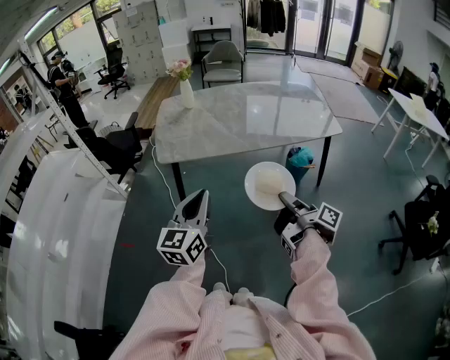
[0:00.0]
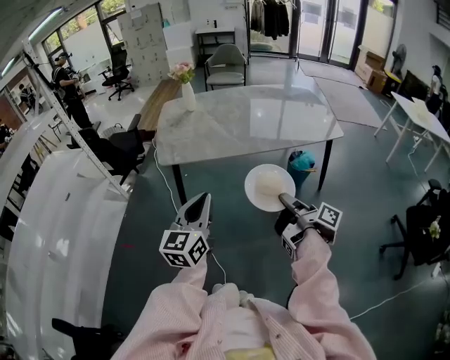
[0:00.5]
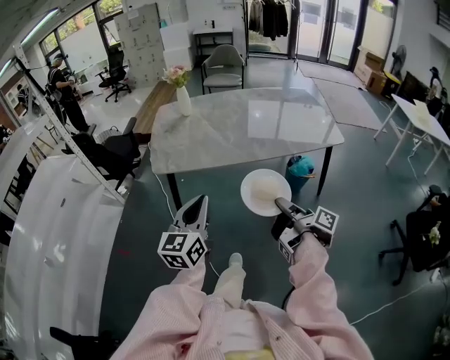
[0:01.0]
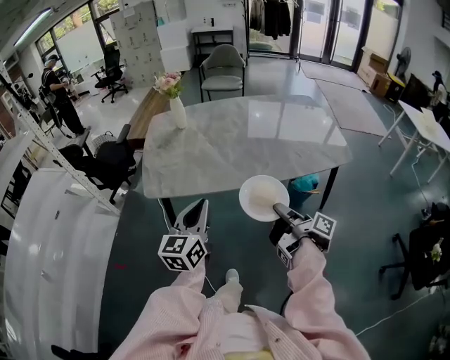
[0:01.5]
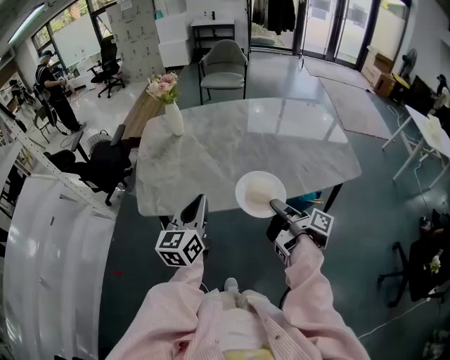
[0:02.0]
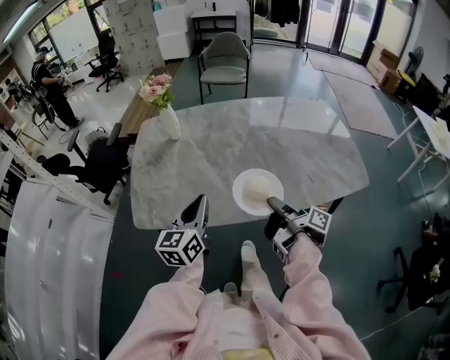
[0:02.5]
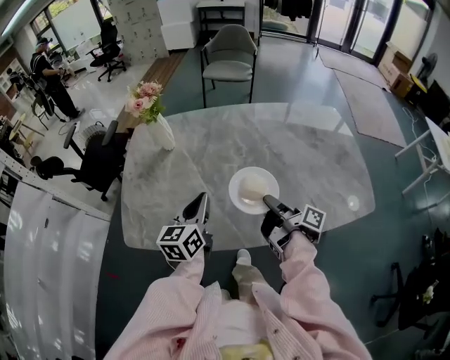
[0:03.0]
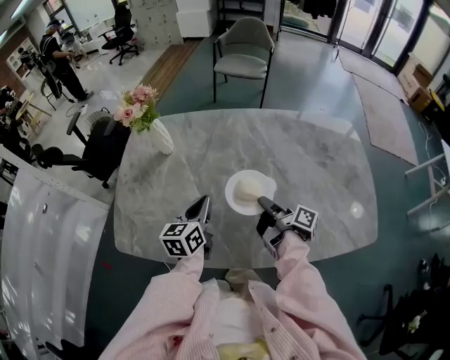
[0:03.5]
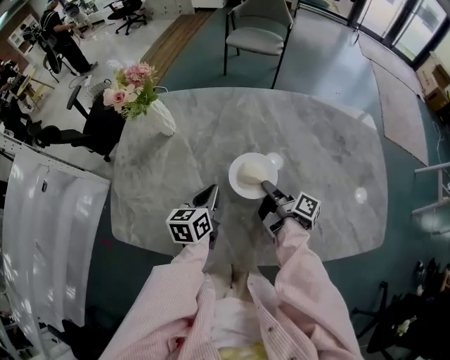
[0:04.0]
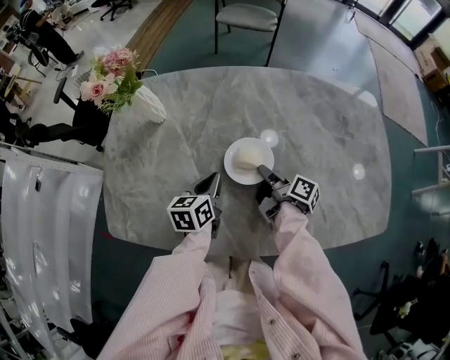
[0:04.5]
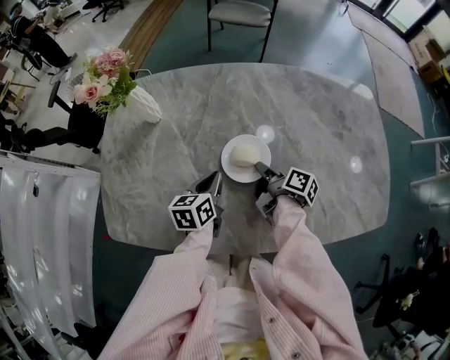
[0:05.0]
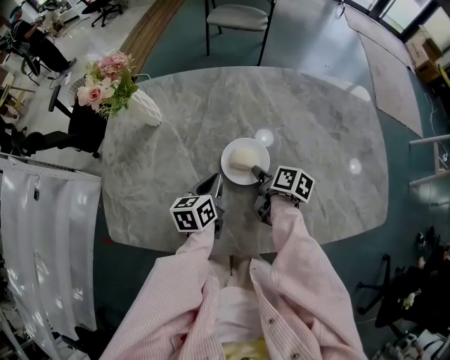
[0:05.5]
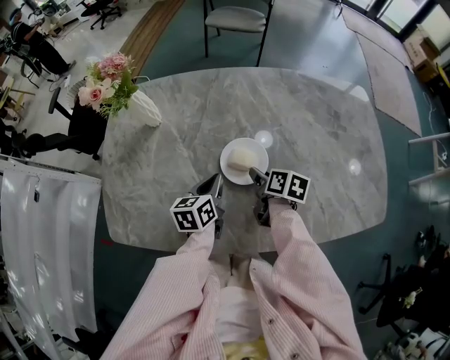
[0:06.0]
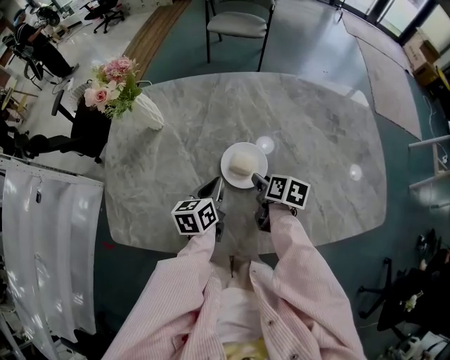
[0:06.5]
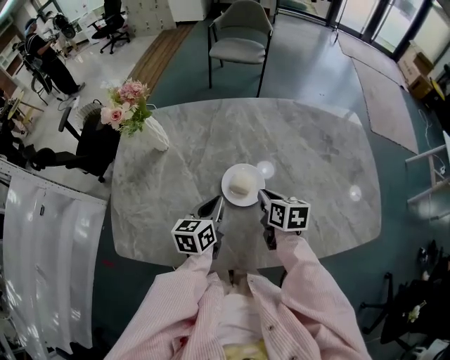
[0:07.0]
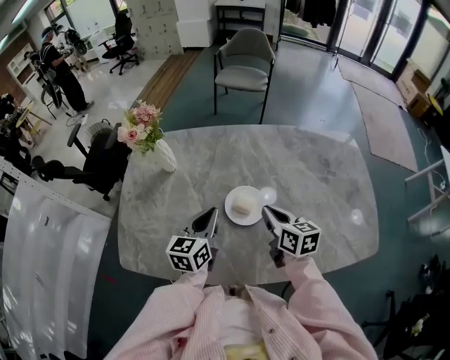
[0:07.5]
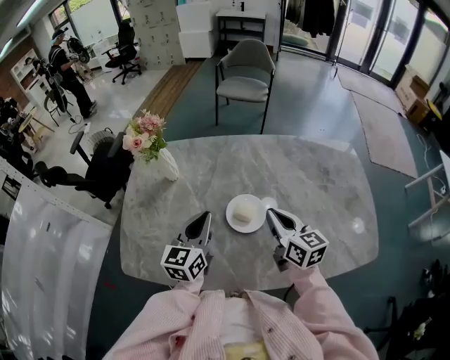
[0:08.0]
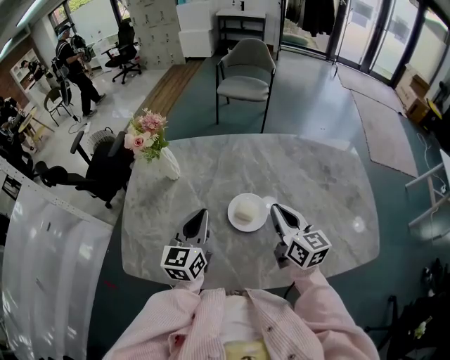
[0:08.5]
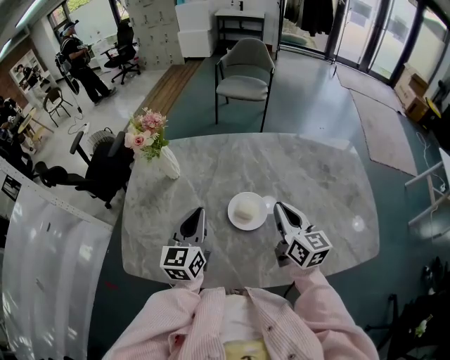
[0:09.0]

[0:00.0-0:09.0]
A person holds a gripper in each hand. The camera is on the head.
0:00.0 to 0:02.0: The left gripper moves roughly 35 cm.
0:02.0 to 0:04.5: The left gripper ends up about 40 cm from where it was, and rotates some 30 degrees.
0:04.5 to 0:07.0: The left gripper moves approximately 5 cm.
0:07.0 to 0:09.0: The left gripper moves upward, roughly 15 cm, and changes its angle by about 30 degrees.

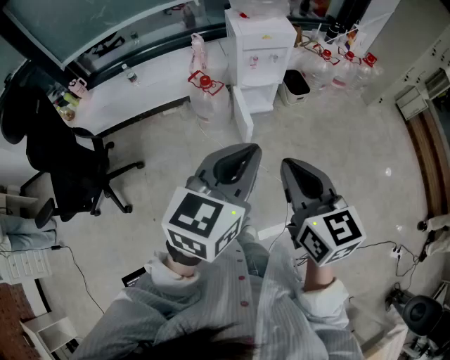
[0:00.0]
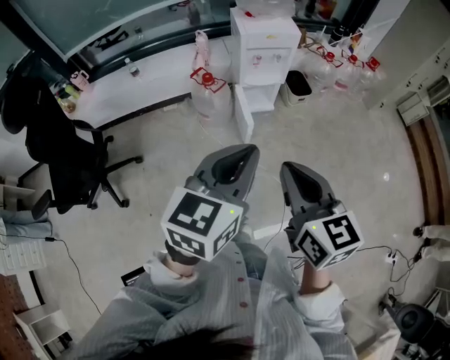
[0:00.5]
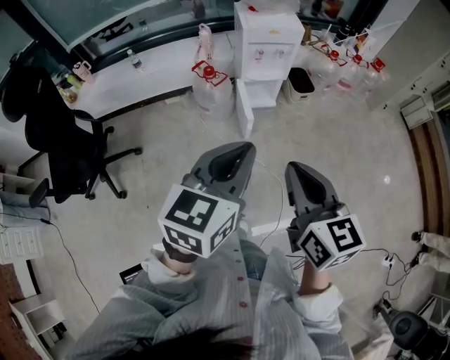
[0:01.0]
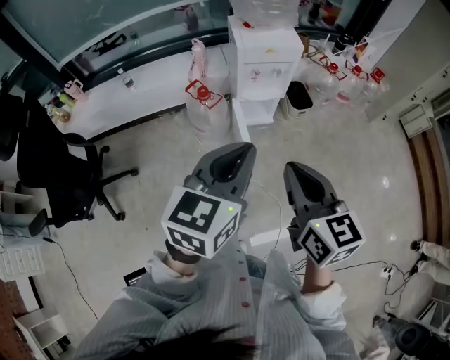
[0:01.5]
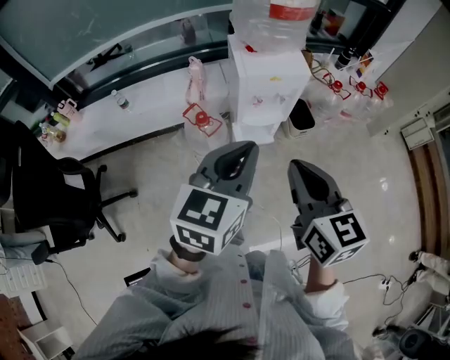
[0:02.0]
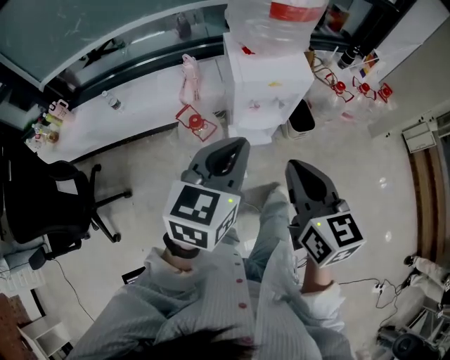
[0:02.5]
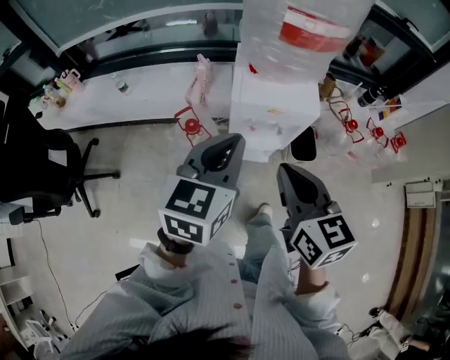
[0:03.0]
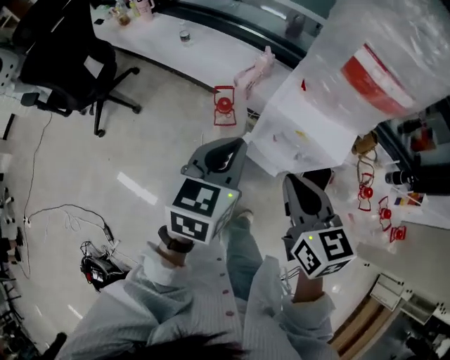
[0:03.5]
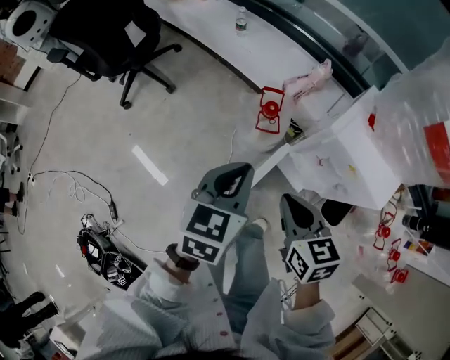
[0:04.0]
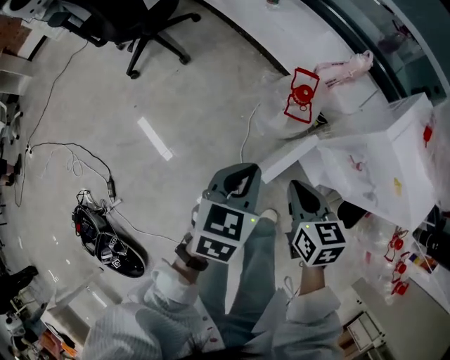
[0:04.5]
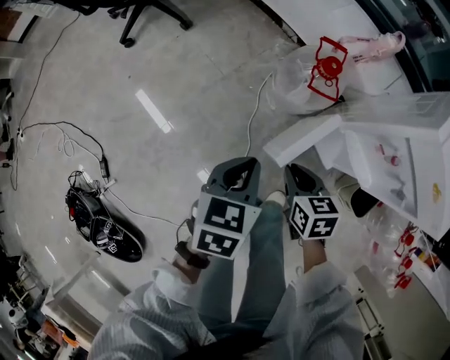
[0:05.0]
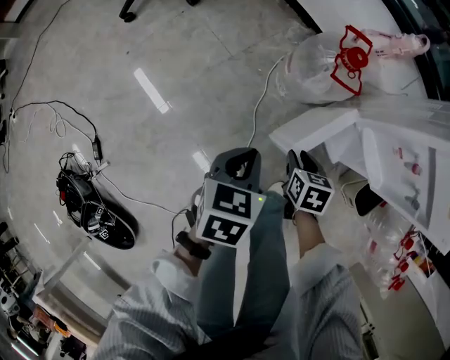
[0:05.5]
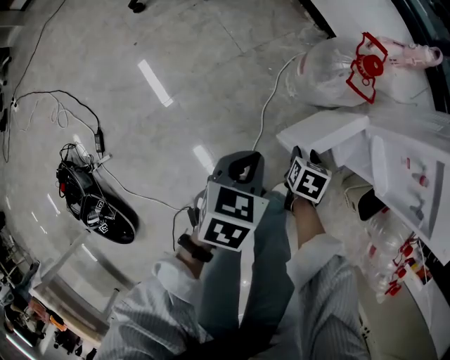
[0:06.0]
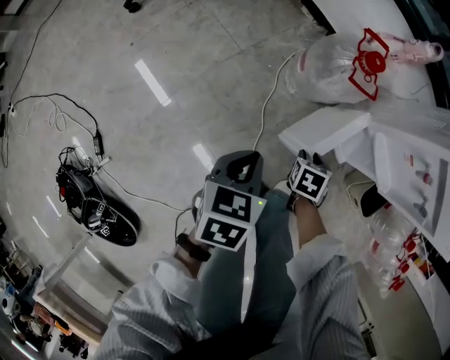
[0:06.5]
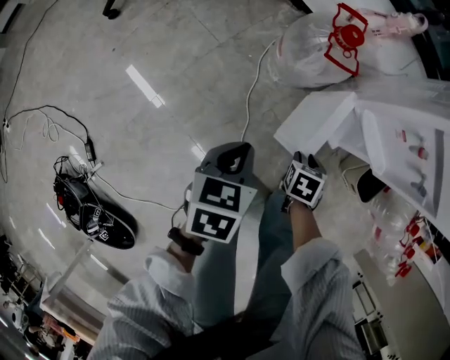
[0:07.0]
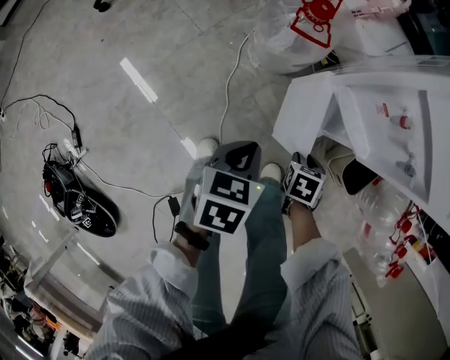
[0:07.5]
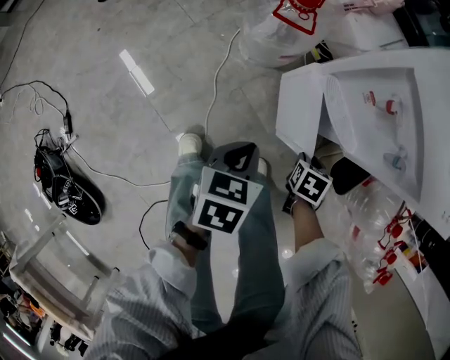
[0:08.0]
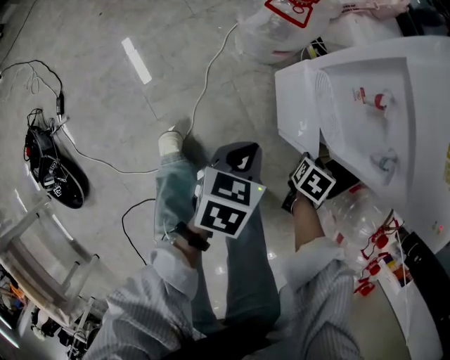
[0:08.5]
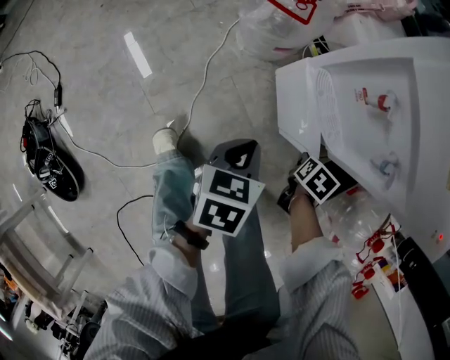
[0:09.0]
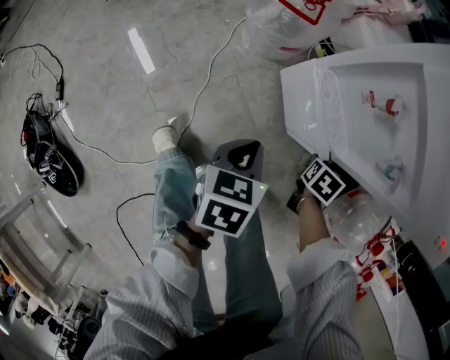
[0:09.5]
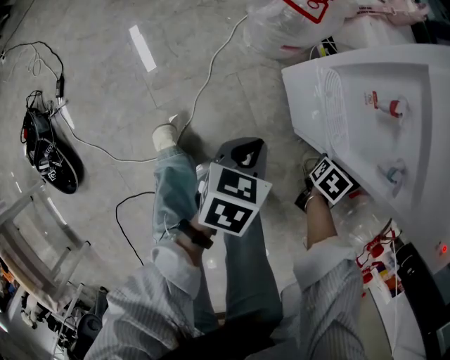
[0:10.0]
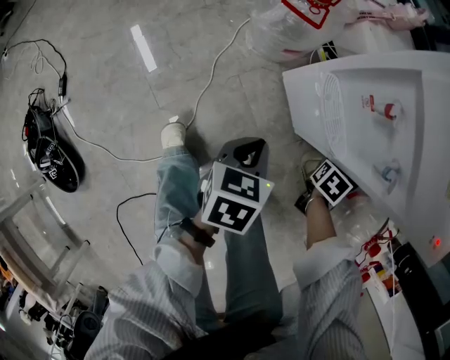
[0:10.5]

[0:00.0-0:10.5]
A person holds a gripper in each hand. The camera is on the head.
0:00.0 to 0:02.0: The two grippers go roughly 25 cm forward.
0:02.0 to 0:04.0: Both grippers travel together downward, approximately 20 cm. The right gripper swivels some 60 degrees. The left gripper swivels approximately 60 degrees.
0:04.0 to 0:06.5: Both grippers move downward, some 40 cm. The right gripper angles its fingers downward, by some 40 degrees, and opens; the left gripper rotates roughly 30 degrees.
0:06.5 to 0:08.5: Both grippers travel together to the right, roughly 30 cm.
0:08.5 to 0:10.5: The right gripper shifts by about 5 cm.

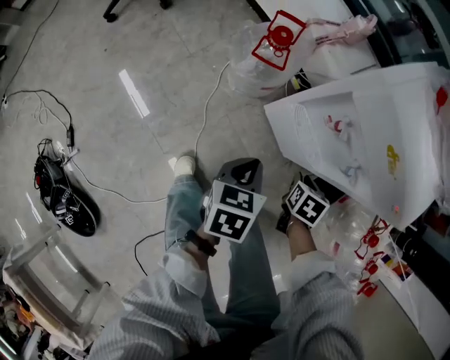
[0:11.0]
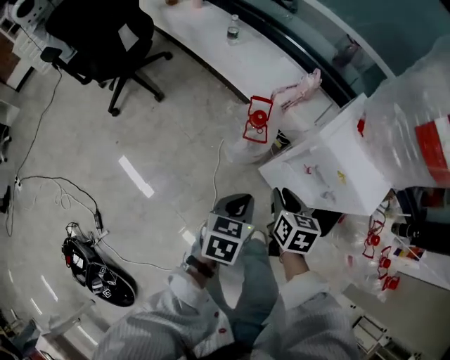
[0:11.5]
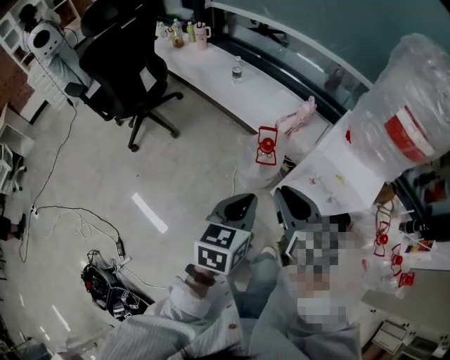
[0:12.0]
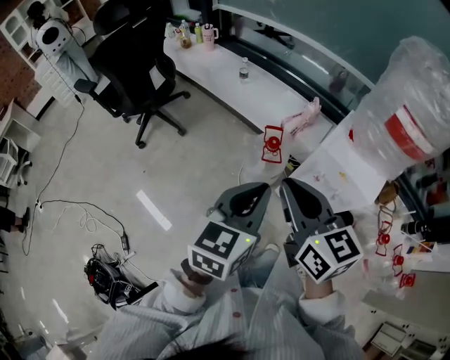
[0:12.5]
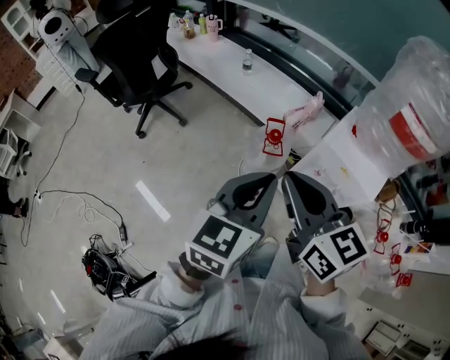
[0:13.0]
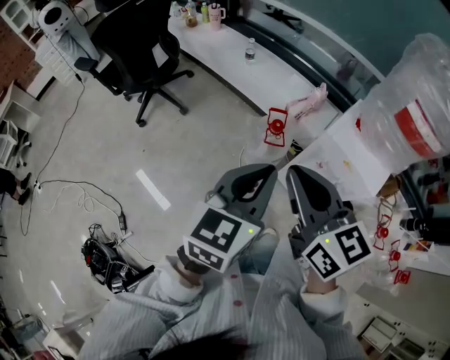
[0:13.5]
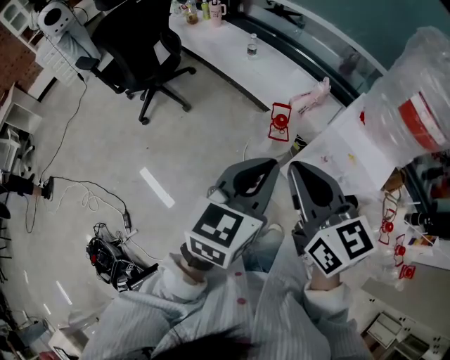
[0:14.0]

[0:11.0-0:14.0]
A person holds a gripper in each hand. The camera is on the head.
0:11.0 to 0:12.5: The right gripper is displaced upward and to the left by roughly 60 cm, and points its fingers roughly 60 degrees further upward. The left gripper is displaced upward by some 40 cm, and angles its fingers upward, by some 30 degrees.
0:12.5 to 0:14.0: The grippers make only small movements.

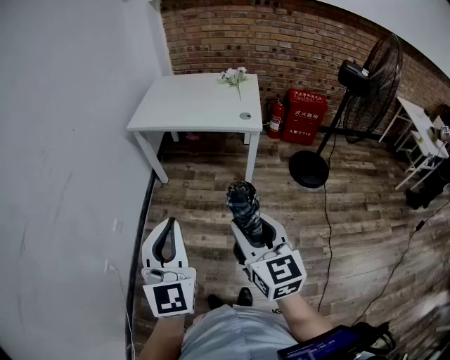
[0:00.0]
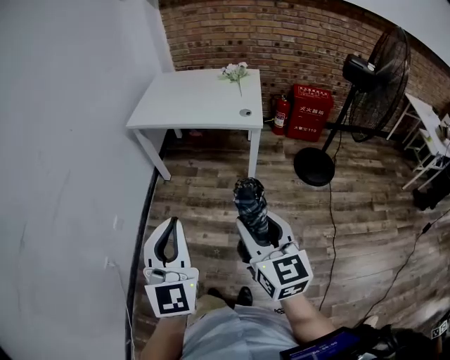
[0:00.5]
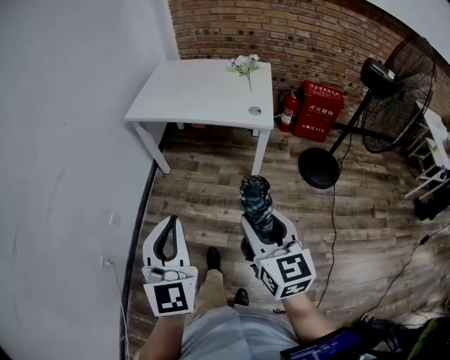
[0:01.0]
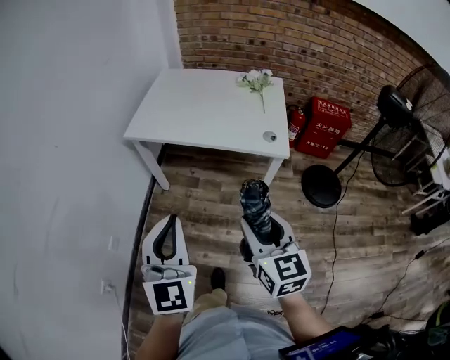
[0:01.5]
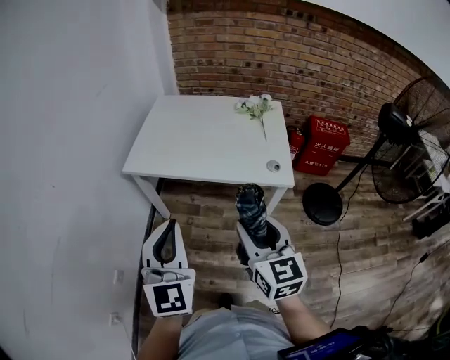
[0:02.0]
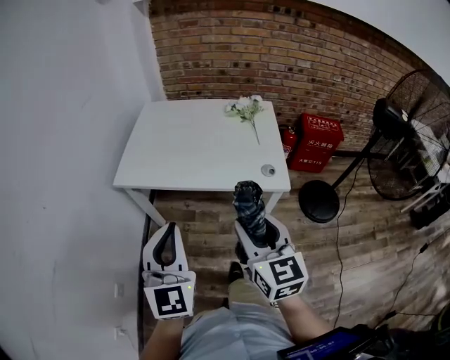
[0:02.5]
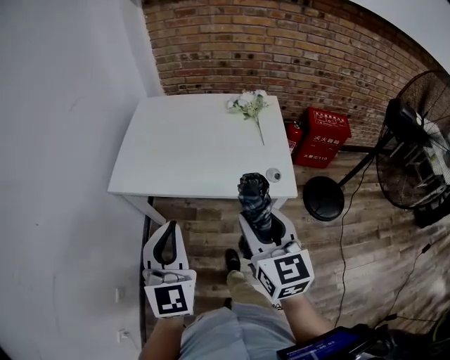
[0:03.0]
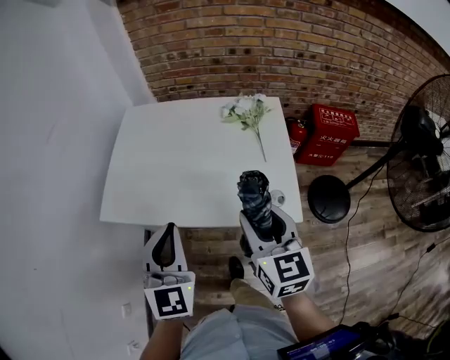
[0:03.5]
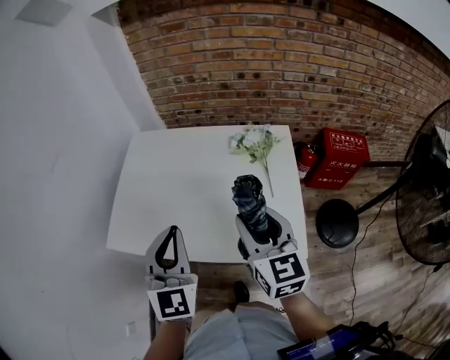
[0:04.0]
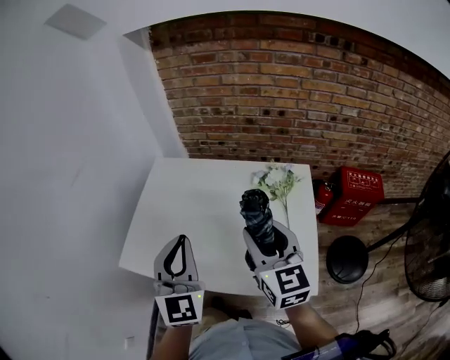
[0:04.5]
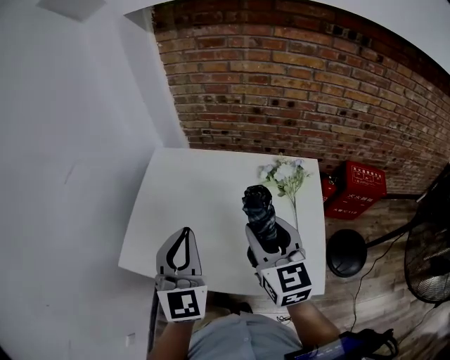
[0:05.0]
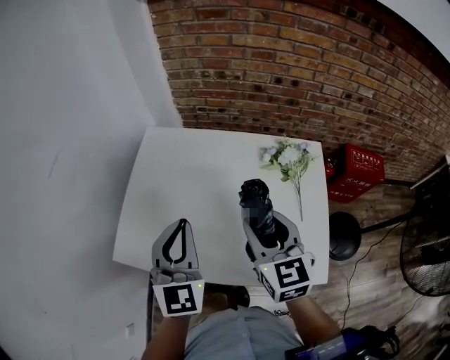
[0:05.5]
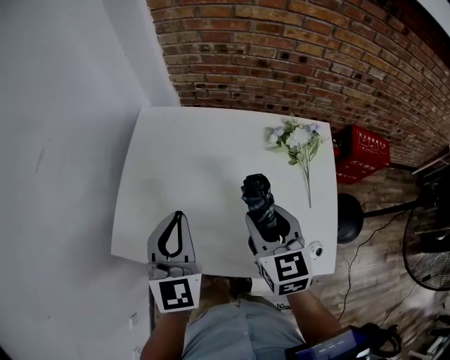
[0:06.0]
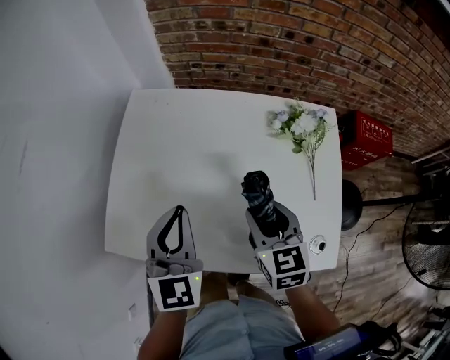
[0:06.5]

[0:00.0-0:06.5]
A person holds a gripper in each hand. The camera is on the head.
0:00.0 to 0:02.0: Both grippers travel together forward, some 35 cm.
0:02.0 to 0:04.5: Both grippers are carried forward, about 40 cm.
0:04.5 to 0:06.5: The left gripper goes some 15 cm downward, forward and to the left; the right gripper travels downward by roughly 20 cm, and rotates about 20 degrees.
